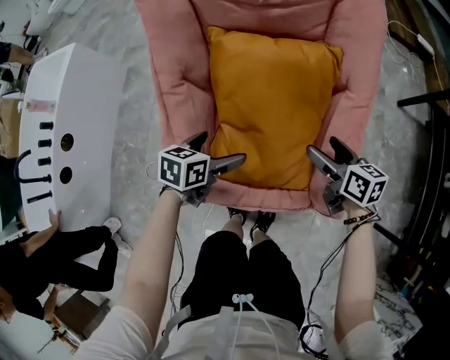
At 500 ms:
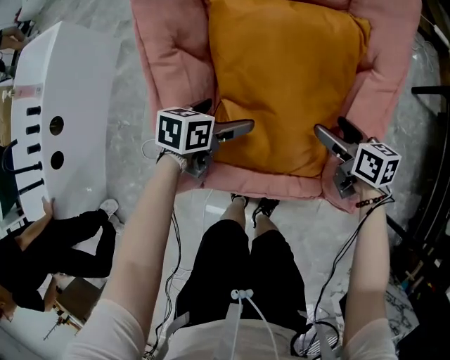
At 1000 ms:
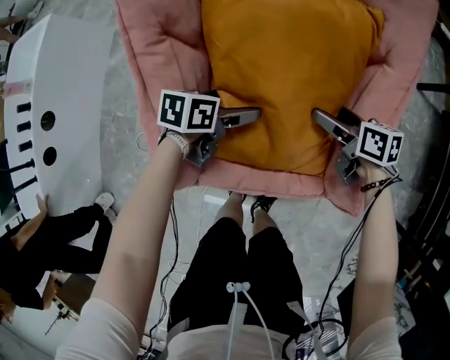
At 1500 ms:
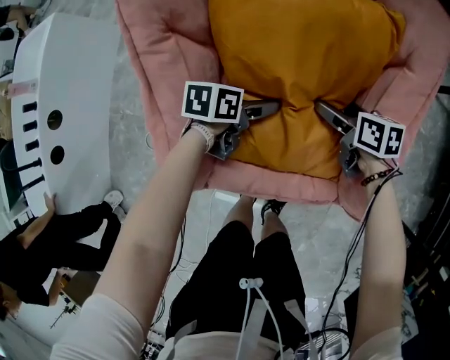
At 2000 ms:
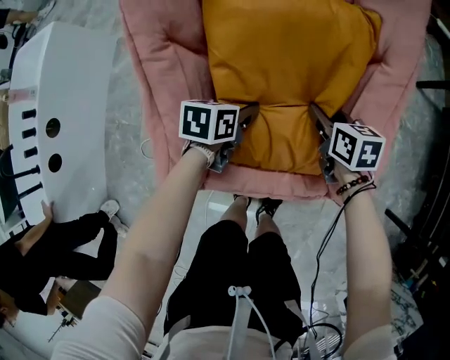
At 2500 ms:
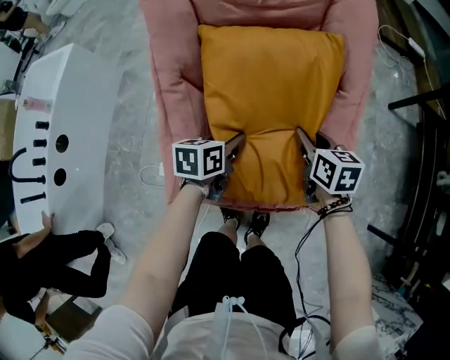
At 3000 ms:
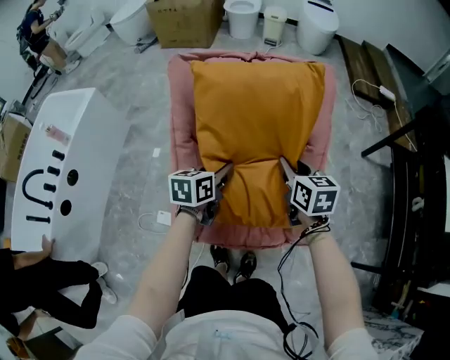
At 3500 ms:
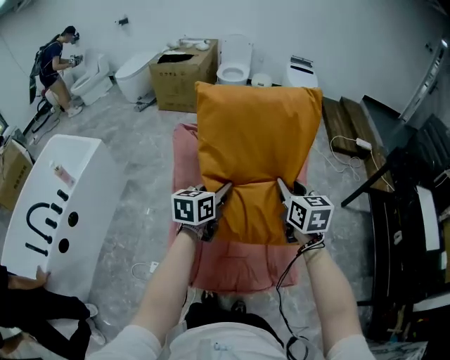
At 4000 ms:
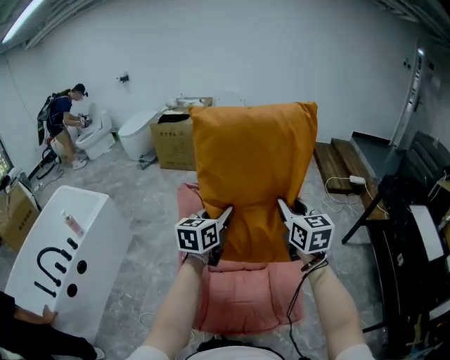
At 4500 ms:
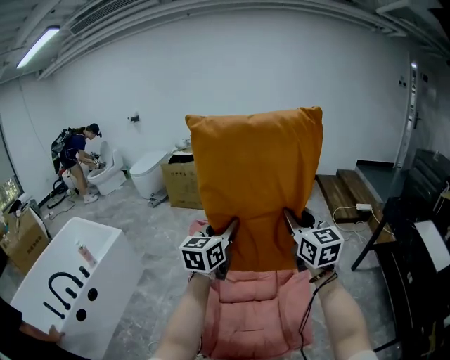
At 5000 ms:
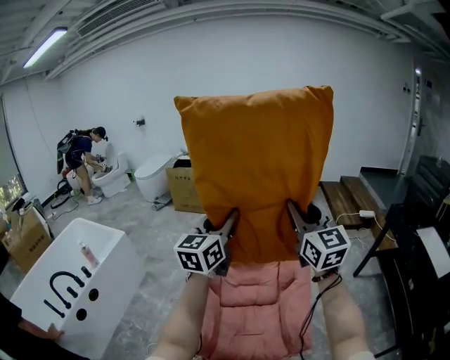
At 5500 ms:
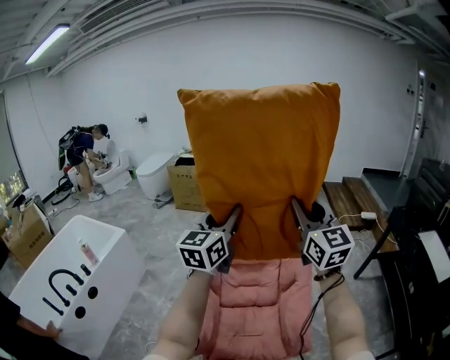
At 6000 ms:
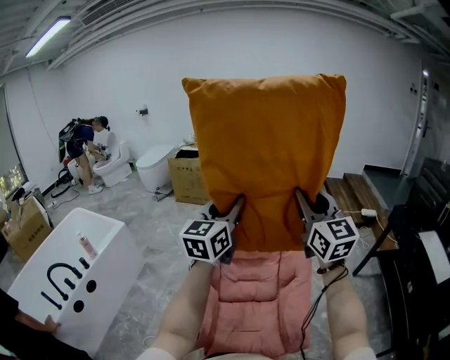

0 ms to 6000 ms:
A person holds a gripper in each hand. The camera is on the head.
0 ms to 2000 ms: Both grippers travel together downward, approximately 10 cm. The right gripper closes up. The left gripper closes.
2000 ms to 4000 ms: The two grippers go about 60 cm upward. The left gripper angles its fingers upward, by roughly 40 degrees, while the right gripper points its fingers roughly 40 degrees further upward.
4000 ms to 6000 ms: Both grippers move upward, some 20 cm. The left gripper rotates about 20 degrees, while the right gripper changes its angle by roughly 30 degrees.

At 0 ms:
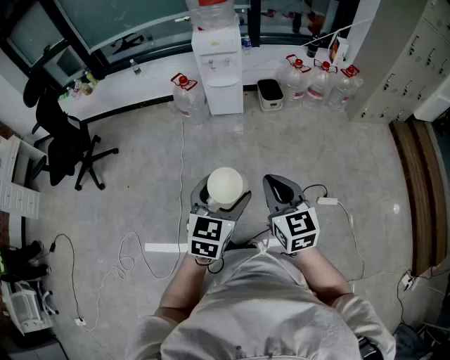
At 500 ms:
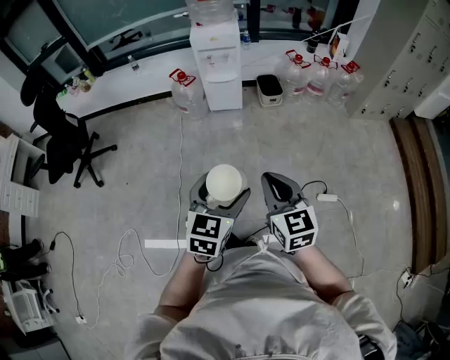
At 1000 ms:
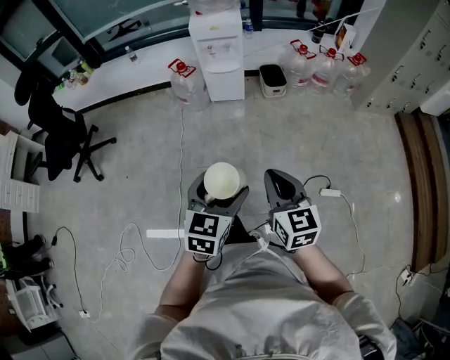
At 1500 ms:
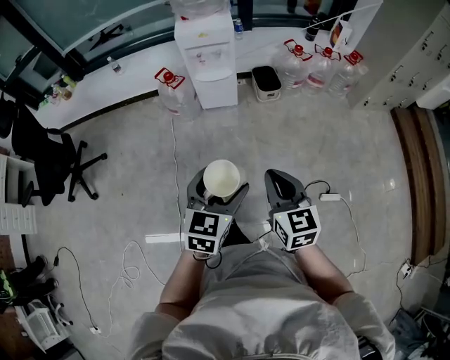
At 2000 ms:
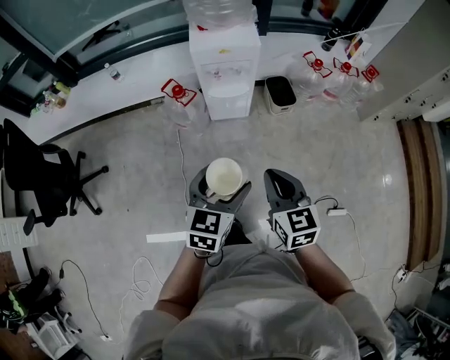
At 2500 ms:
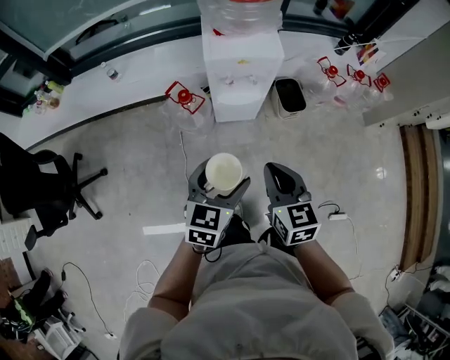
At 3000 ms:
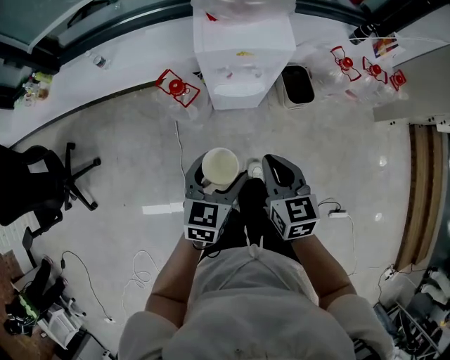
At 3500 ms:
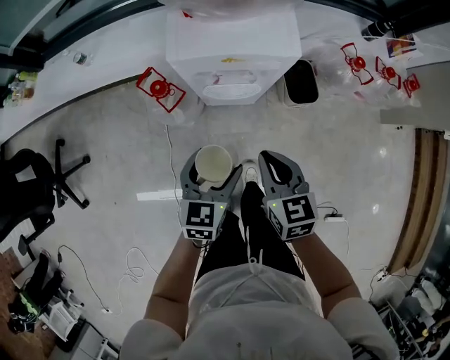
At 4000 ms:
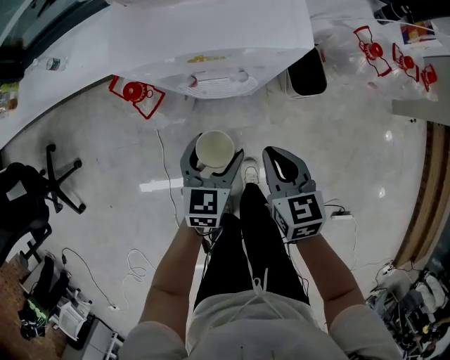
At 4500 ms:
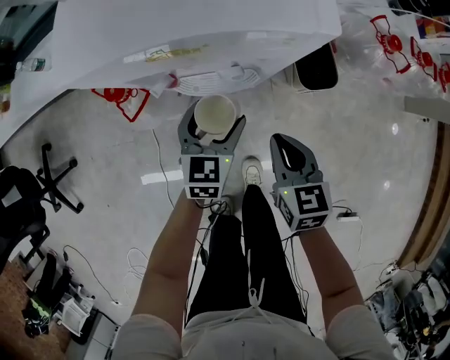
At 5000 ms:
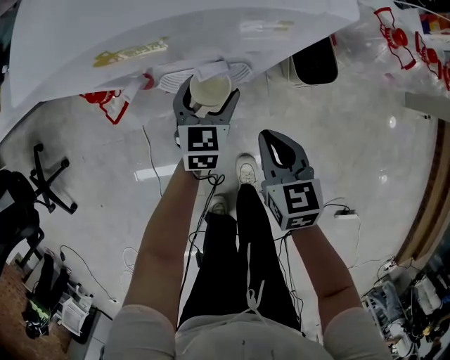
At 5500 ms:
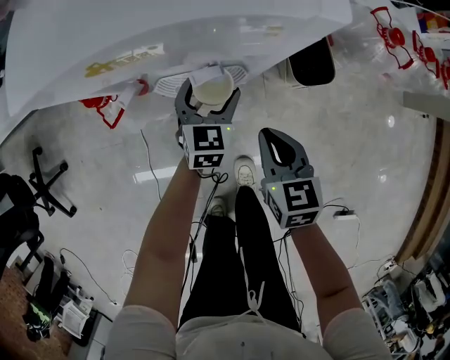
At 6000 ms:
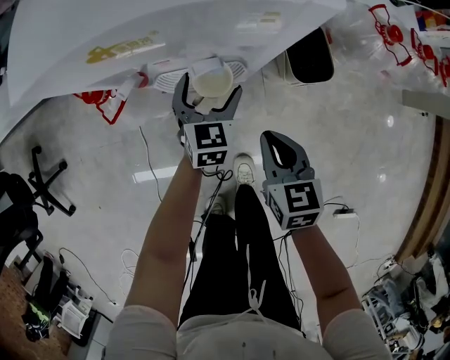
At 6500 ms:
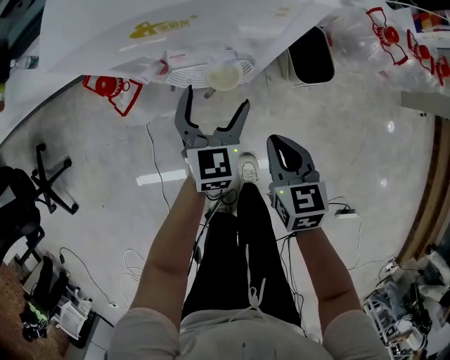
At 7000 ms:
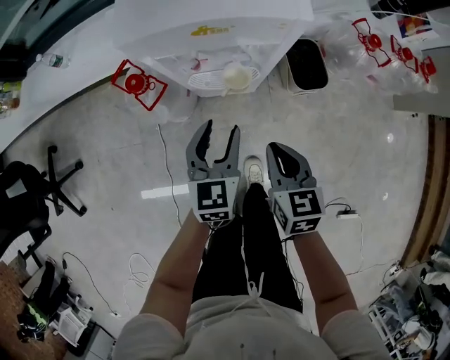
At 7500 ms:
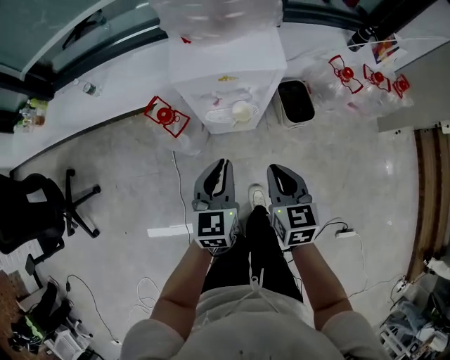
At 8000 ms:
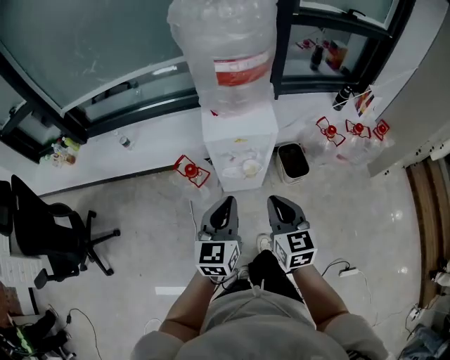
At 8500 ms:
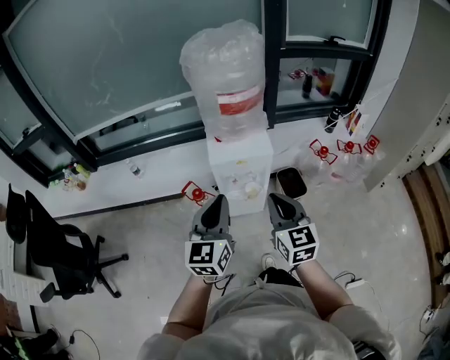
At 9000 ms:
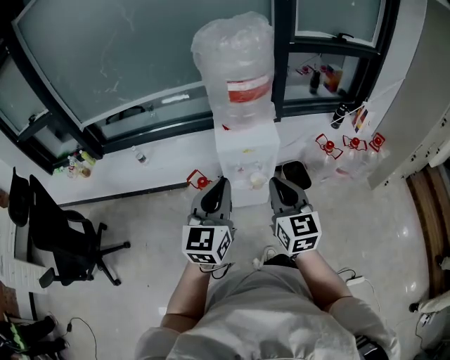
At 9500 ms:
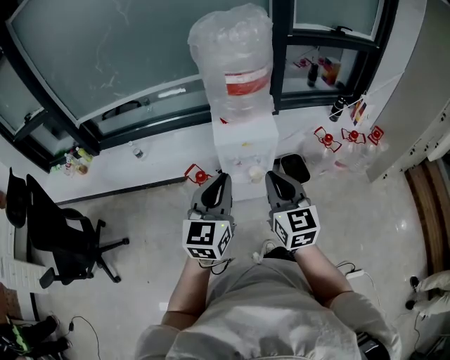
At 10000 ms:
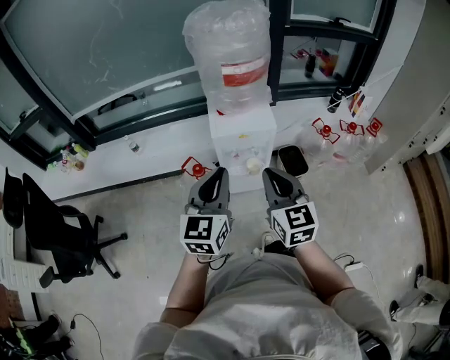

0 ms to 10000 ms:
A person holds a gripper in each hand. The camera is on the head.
0 ms to 2000 ms: Both grippers travel together forward, about 35 cm.
2000 ms to 4000 ms: Both grippers travel together forward and downward, approximately 40 cm.
4000 ms to 6000 ms: The left gripper moves downward and forward, approximately 20 cm, while the right gripper shifts approximately 10 cm downward.
6000 ms to 8000 ms: The left gripper moves upward and backward, roughly 50 cm, swivels approximately 20 degrees, and closes. The right gripper shifts approximately 40 cm upward, and changes its angle by about 20 degrees.
8000 ms to 10000 ms: The two grippers go approximately 10 cm upward.

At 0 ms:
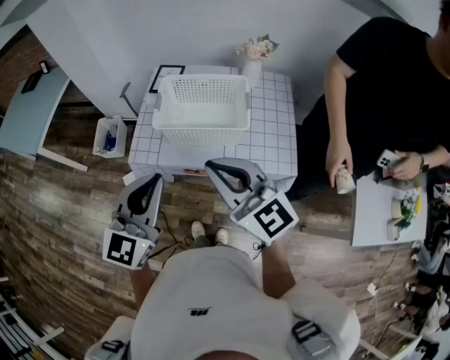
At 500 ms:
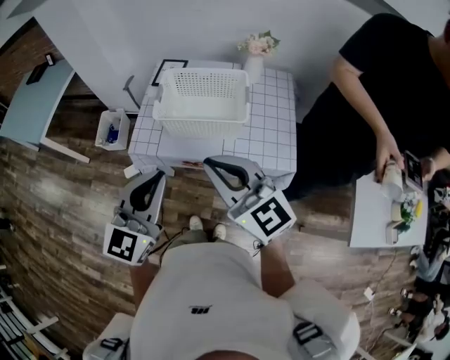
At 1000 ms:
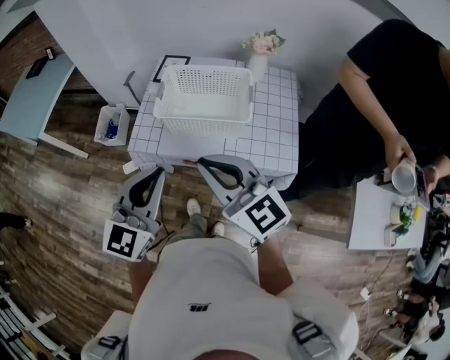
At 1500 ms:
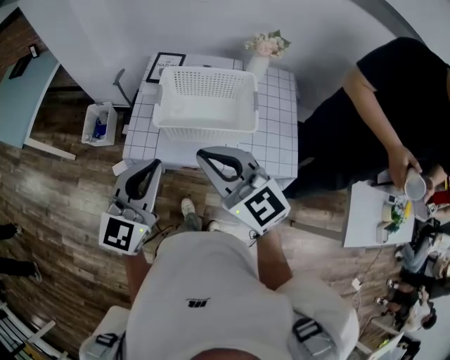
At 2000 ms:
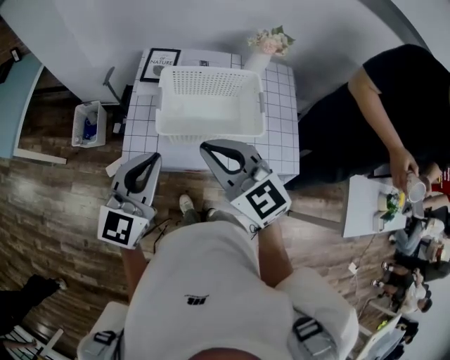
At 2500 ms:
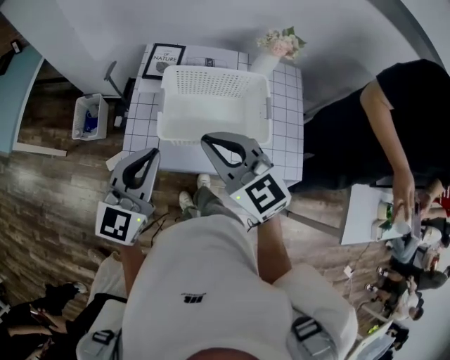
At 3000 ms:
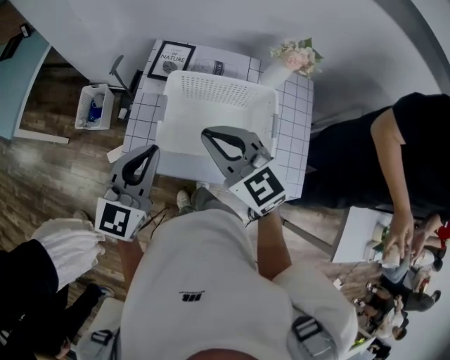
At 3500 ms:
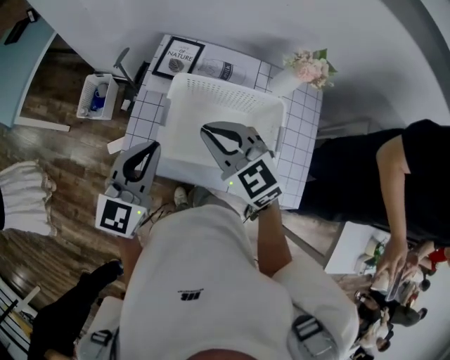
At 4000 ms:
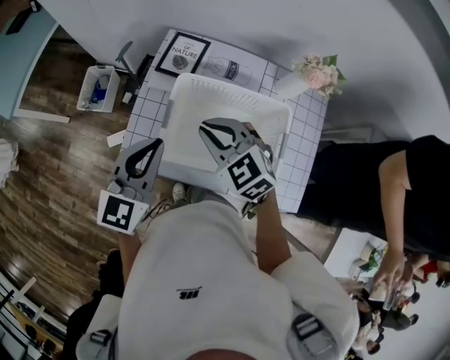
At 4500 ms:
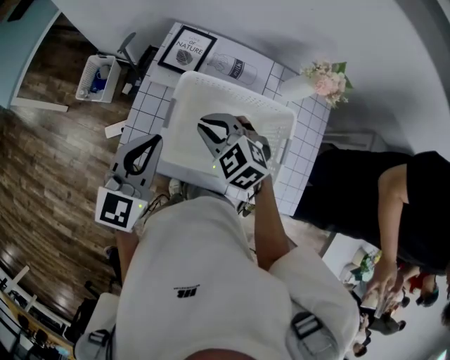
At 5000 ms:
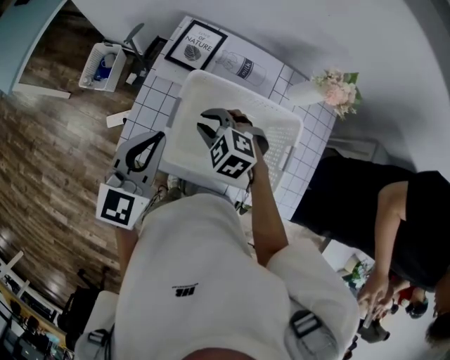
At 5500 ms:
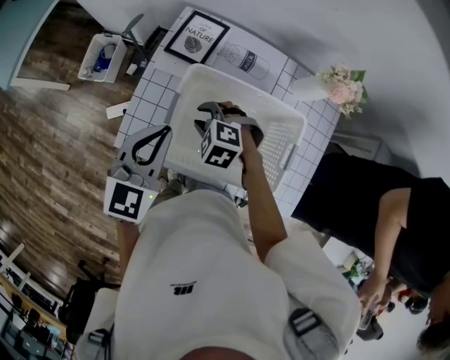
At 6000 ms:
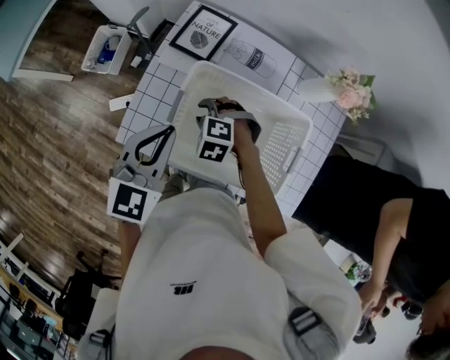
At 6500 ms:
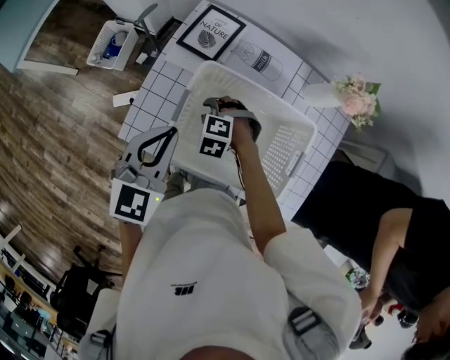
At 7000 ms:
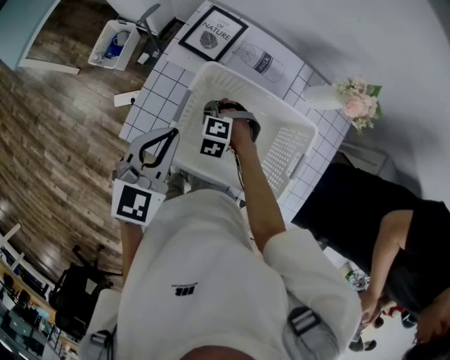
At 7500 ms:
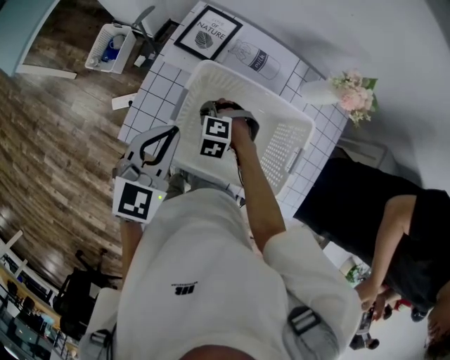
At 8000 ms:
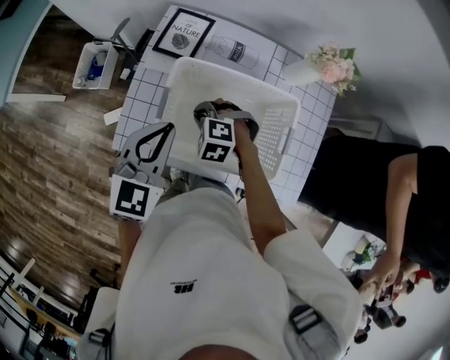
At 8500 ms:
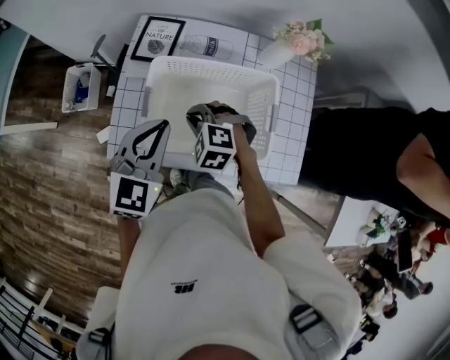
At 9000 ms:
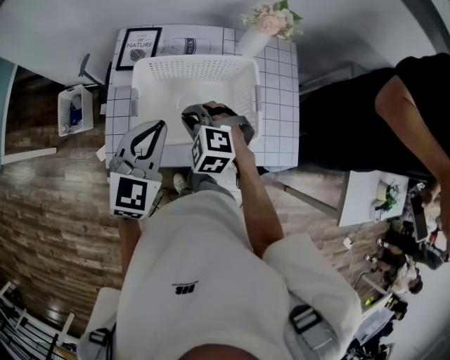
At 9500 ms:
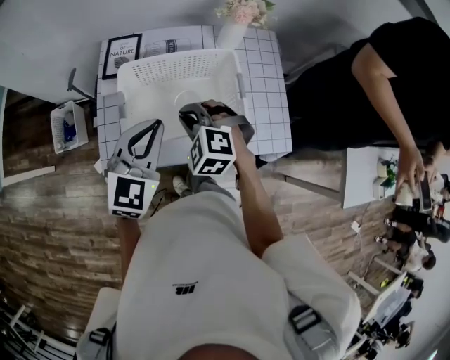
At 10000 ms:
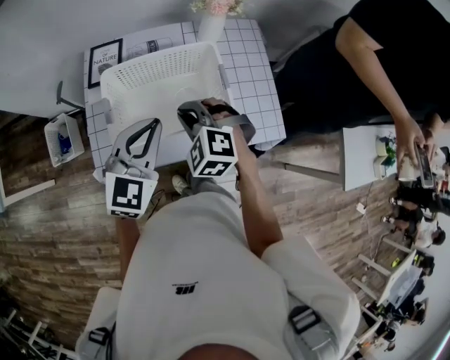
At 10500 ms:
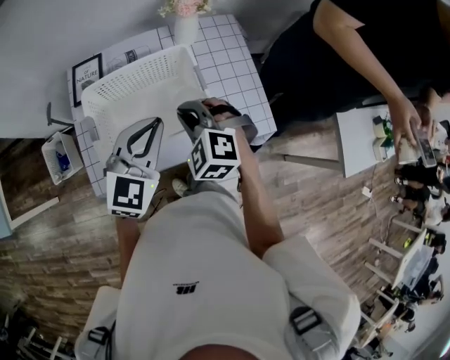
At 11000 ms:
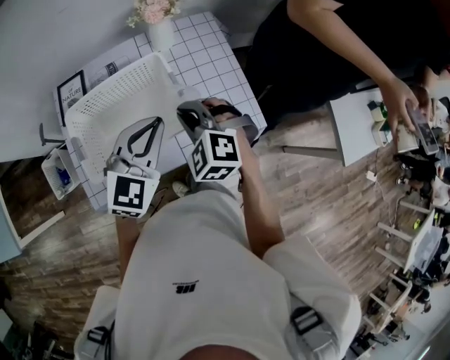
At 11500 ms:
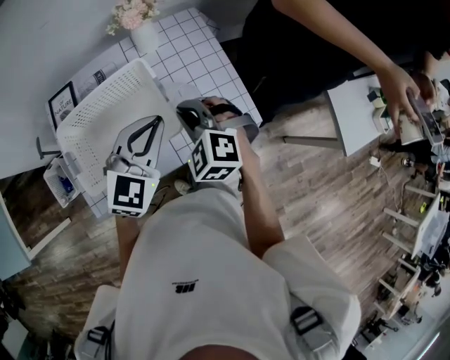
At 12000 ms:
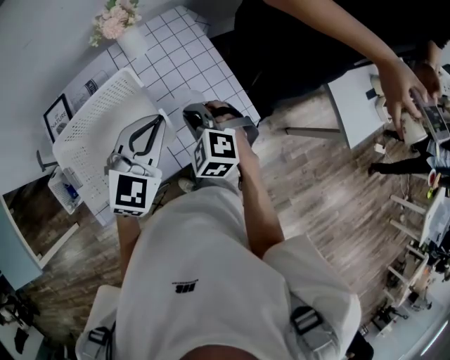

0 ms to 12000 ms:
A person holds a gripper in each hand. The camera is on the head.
0 ms to 2000 ms: Both grippers move forward and to the left, roughly 15 cm.
2000 ms to 4000 ms: The left gripper shifts some 15 cm forward. The right gripper travels forward and downward by roughly 20 cm, and changes its angle by roughly 30 degrees.
4000 ms to 6000 ms: The right gripper heads downward, covering about 20 cm, points its fingers roughly 30 degrees further downward, and opens up. The left gripper heads downward, covering some 5 cm.
6000 ms to 8000 ms: The right gripper closes its fingers.
8000 ms to 10000 ms: The left gripper ends up roughly 10 cm from where it was, and rotates roughly 20 degrees. Meanwhile the right gripper goes some 15 cm upward, and rotates roughly 40 degrees.
10000 ms to 12000 ms: The left gripper shifts roughly 20 cm to the right and forward, and changes its angle by about 20 degrees, while the right gripper heads to the right, covering some 20 cm, and rotates about 20 degrees.
